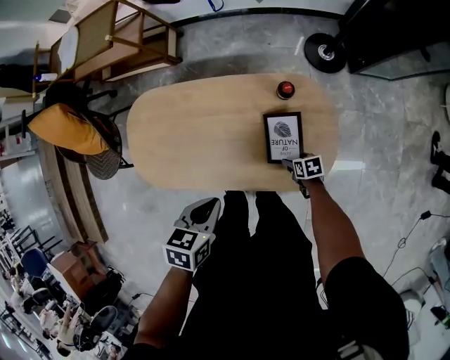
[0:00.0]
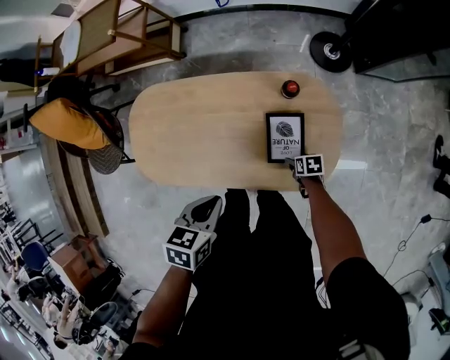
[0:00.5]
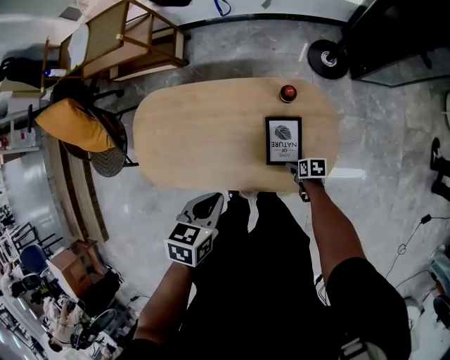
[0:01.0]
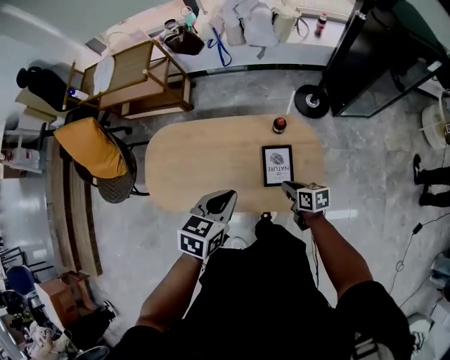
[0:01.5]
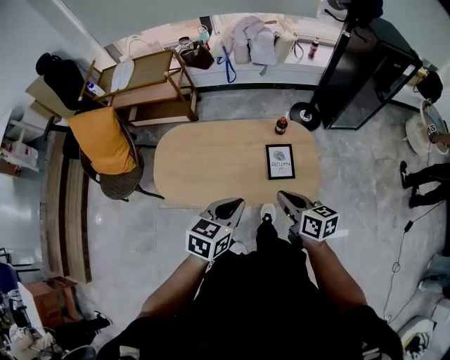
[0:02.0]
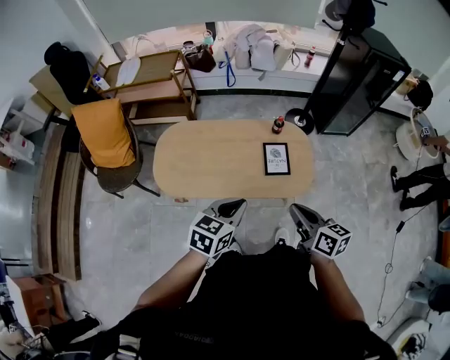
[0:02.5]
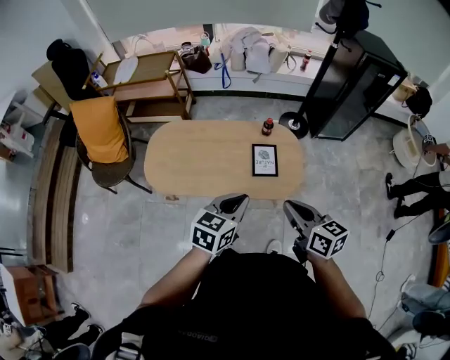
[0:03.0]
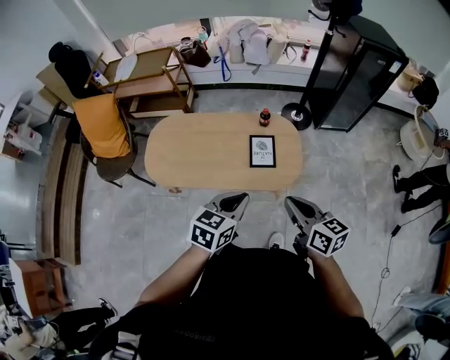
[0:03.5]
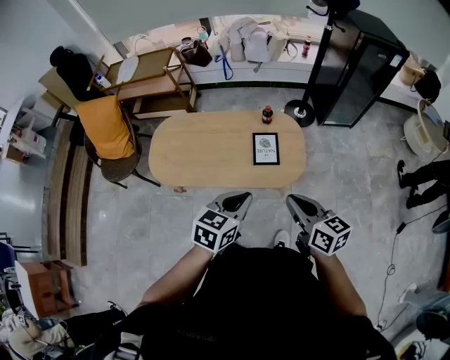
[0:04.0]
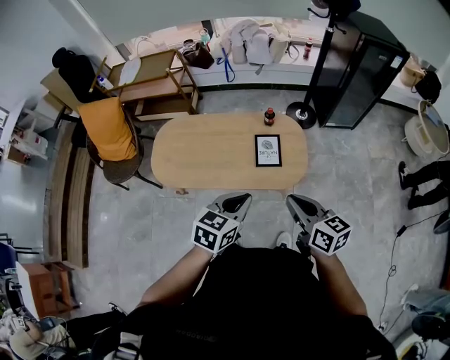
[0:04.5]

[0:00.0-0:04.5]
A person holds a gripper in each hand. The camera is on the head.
0:00.0 to 0:02.0: The left gripper moves upward and backward, approximately 20 cm, and turns by about 30 degrees. The right gripper travels upward by approximately 40 cm, tips its fingers upward by approximately 40 degrees, and closes.
0:02.0 to 0:04.5: The left gripper moves to the right and backward, approximately 15 cm; the right gripper shifts roughly 20 cm backward, to the right and upward.

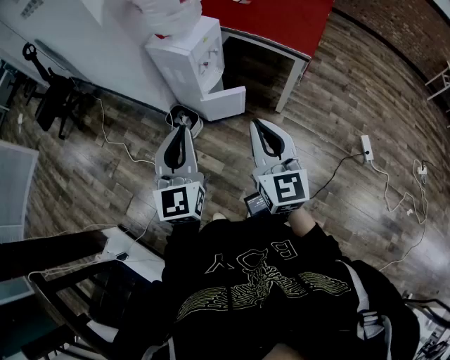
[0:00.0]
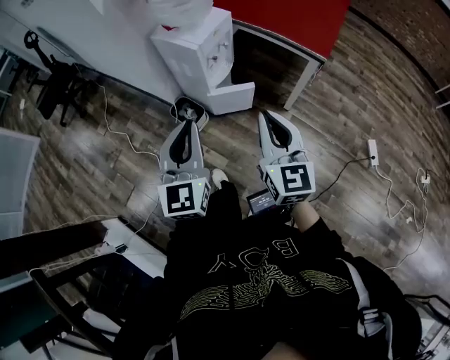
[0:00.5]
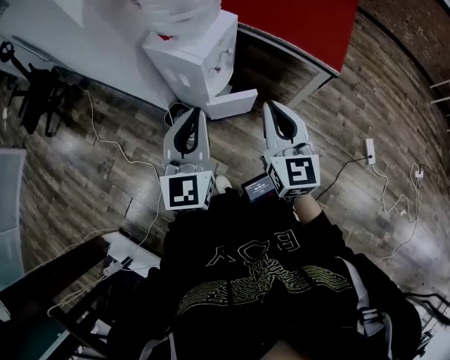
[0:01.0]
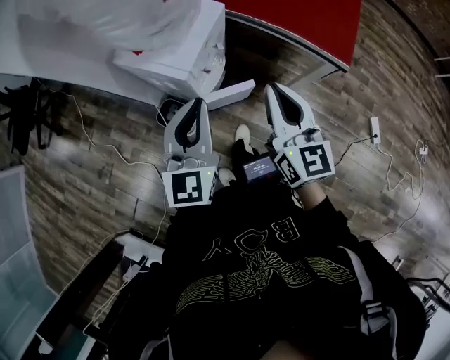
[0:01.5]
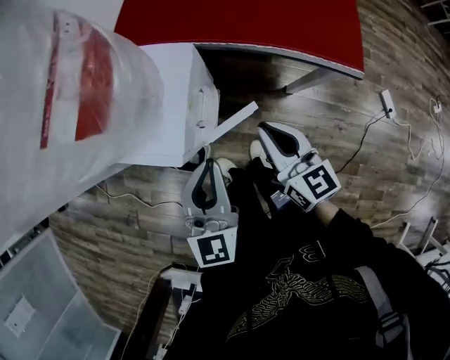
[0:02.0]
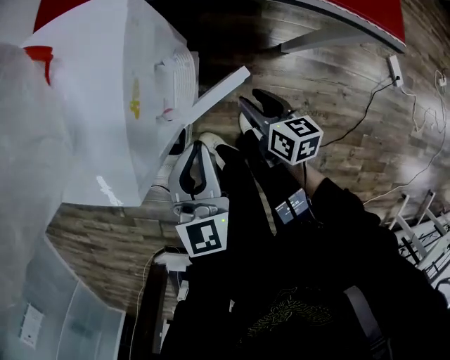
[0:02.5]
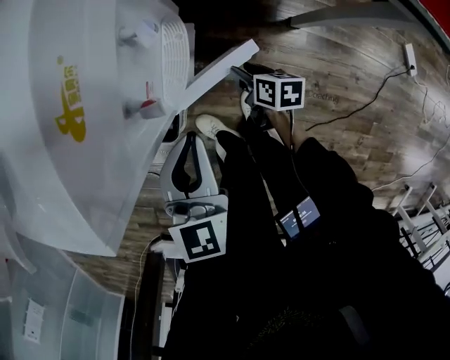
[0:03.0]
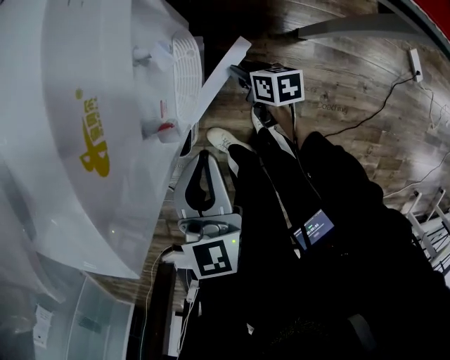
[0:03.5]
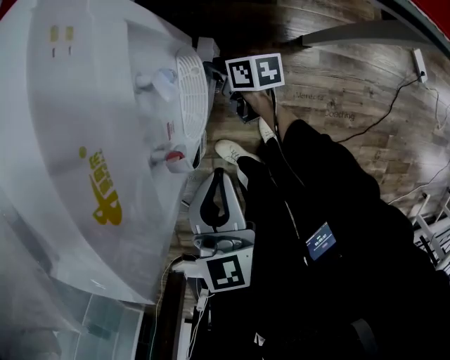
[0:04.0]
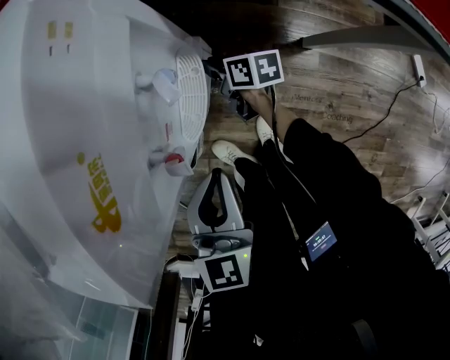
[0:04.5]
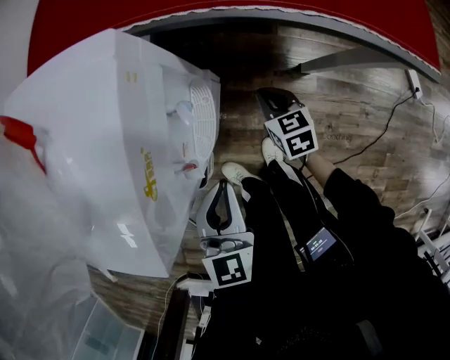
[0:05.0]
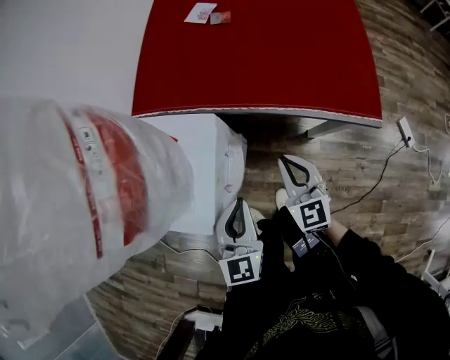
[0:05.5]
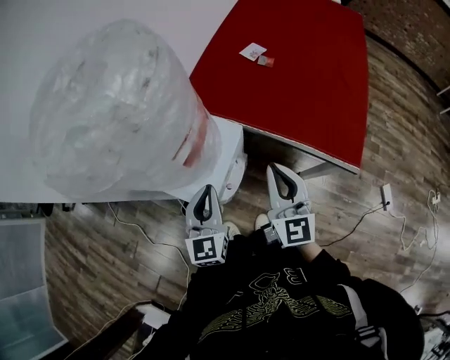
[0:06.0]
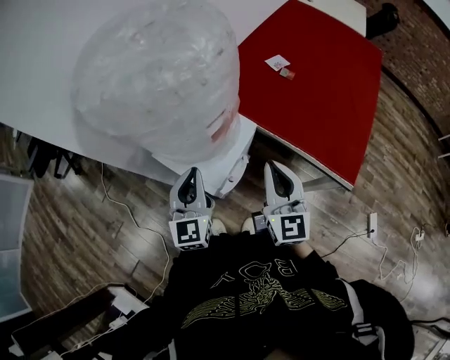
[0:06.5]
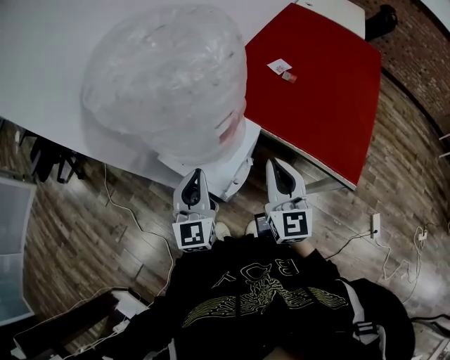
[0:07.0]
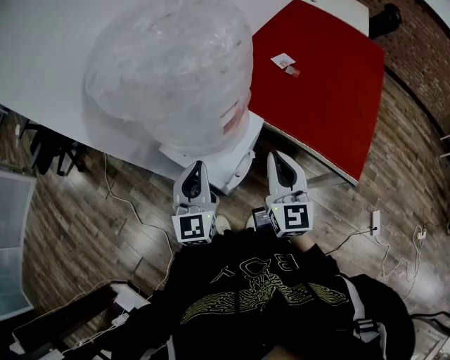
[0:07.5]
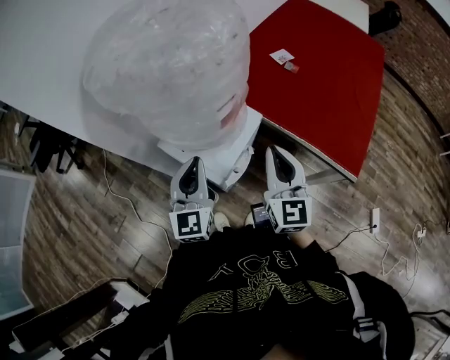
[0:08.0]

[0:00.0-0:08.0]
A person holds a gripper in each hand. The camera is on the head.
0:00.0 to 0:02.0: The two grippers travel together, forward, approximately 40 cm. The right gripper is displaced downward by about 20 cm, and turns by approximately 30 degrees. Meanwhile the left gripper turns by some 20 degrees.
0:02.0 to 0:04.0: The right gripper shifts approximately 50 cm downward, swivels roughly 50 degrees, and opens up, while the left gripper shifts about 25 cm downward.
0:04.0 to 0:06.0: The right gripper goes approximately 60 cm upward, points its fingers approximately 40 degrees further upward, and closes. Meanwhile the left gripper moves upward, approximately 30 cm, and swivels roughly 30 degrees.
0:06.0 to 0:08.0: The left gripper goes some 10 cm to the left and upward. The right gripper heads to the left, covering some 5 cm.

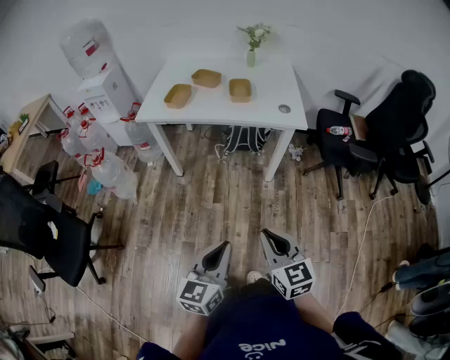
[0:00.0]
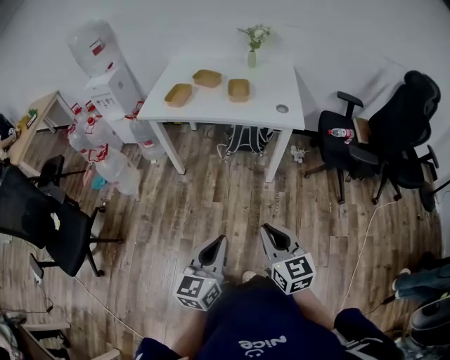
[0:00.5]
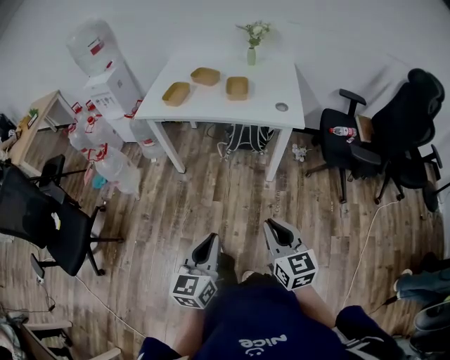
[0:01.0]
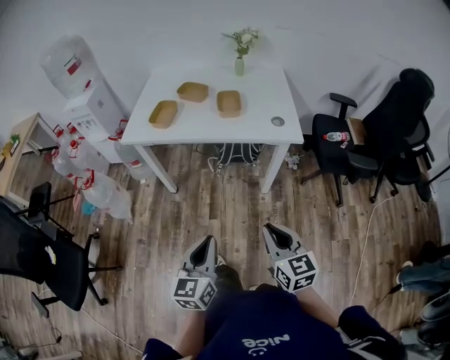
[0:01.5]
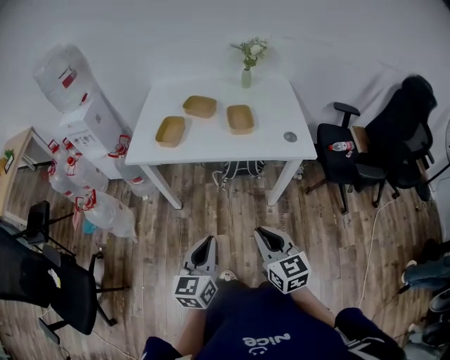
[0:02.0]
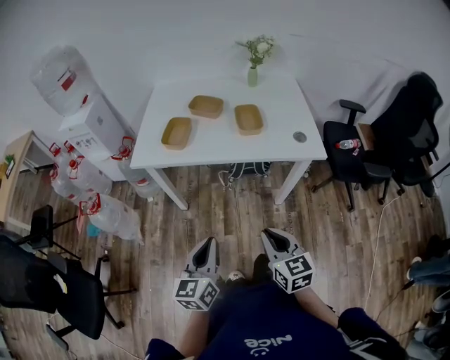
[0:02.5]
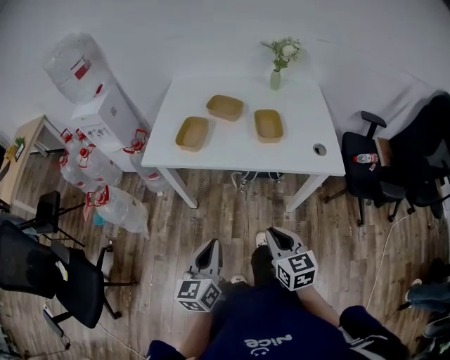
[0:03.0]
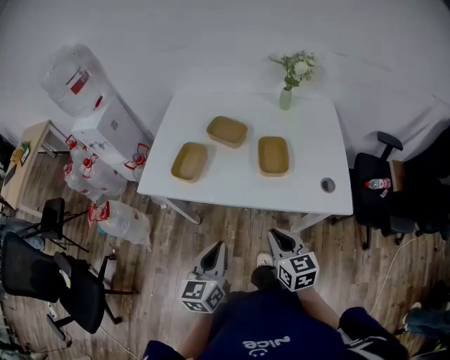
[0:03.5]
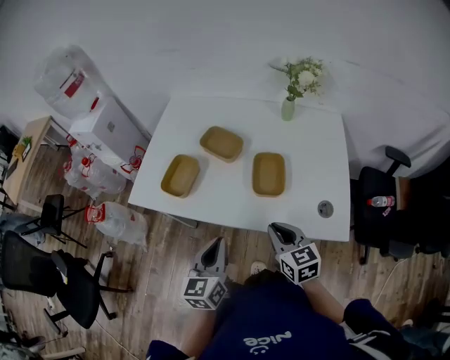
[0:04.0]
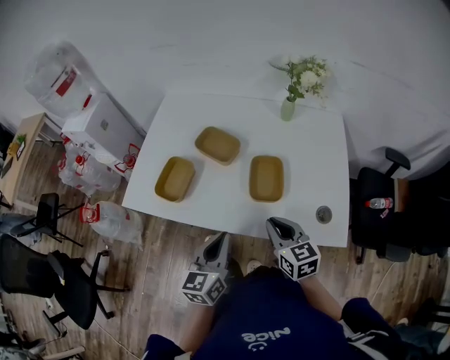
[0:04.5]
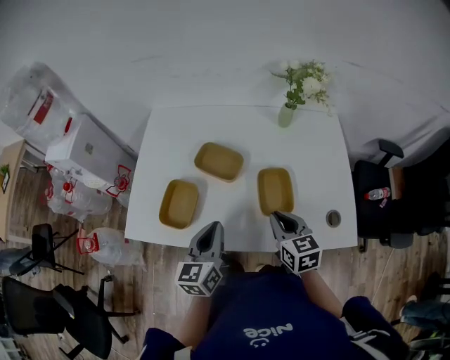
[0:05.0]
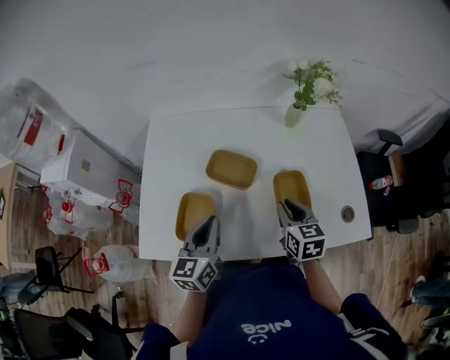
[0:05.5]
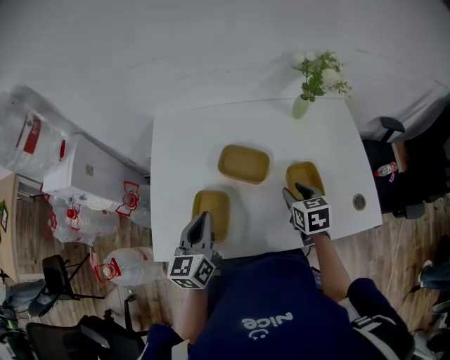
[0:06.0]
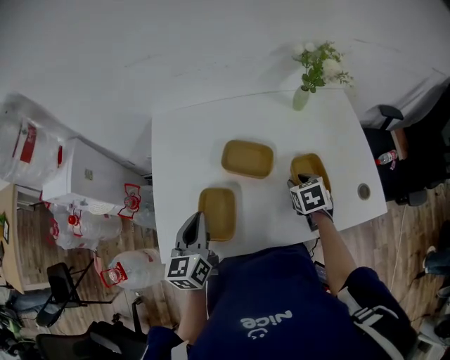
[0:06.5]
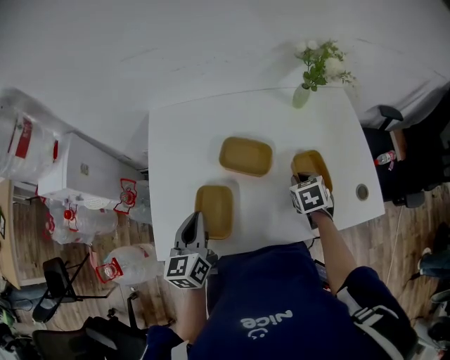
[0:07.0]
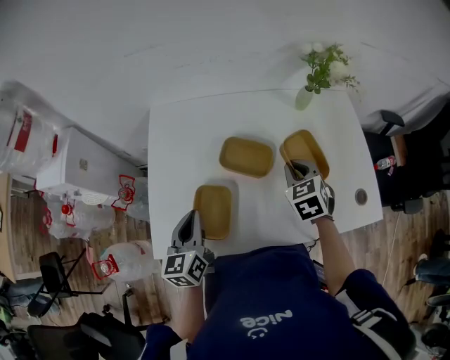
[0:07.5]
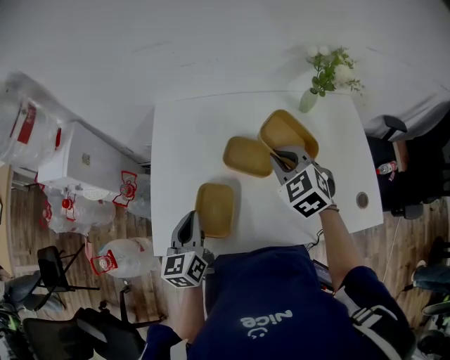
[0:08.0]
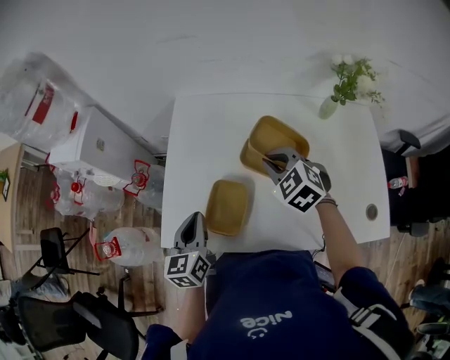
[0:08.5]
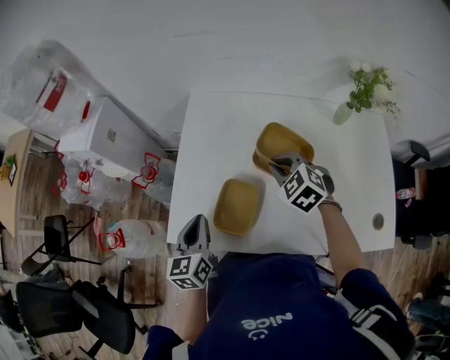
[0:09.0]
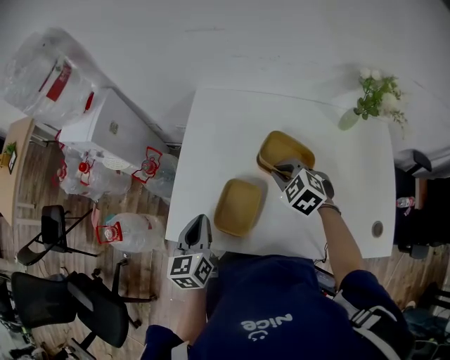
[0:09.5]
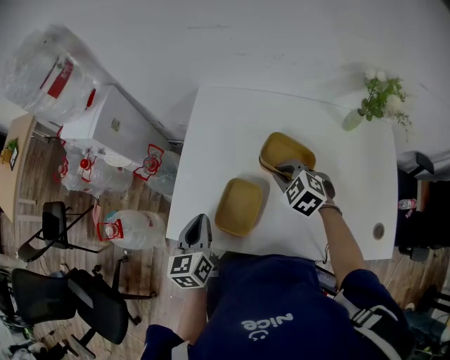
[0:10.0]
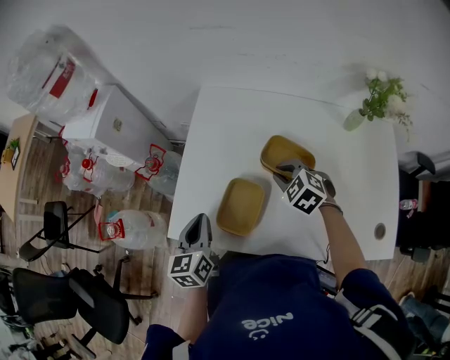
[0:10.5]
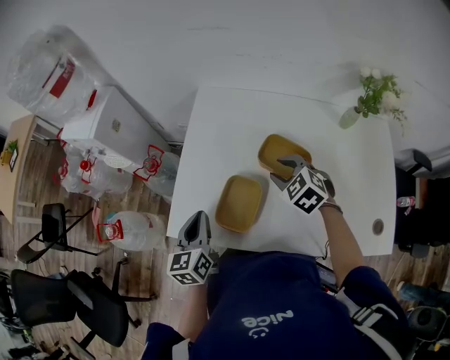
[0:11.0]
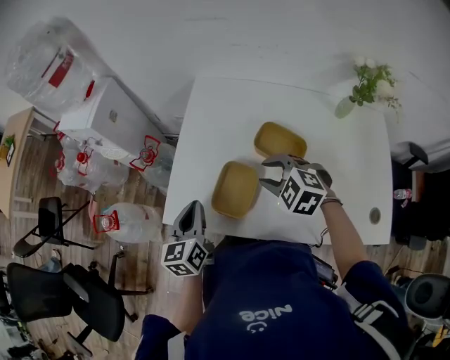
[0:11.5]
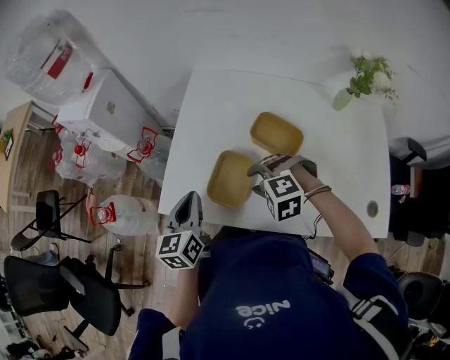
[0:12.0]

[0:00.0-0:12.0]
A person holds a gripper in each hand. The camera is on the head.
0:00.0 to 0:02.0: Both grippers move forward, approximately 25 cm.
0:02.0 to 0:04.0: Both grippers travel together forward, some 35 cm.
0:04.0 to 0:06.0: The right gripper goes some 20 cm forward, swivels some 30 degrees, and opens up, while the left gripper travels forward and to the left by about 30 cm.
0:06.0 to 0:08.0: The left gripper shifts some 5 cm to the left. Meanwhile the right gripper goes some 15 cm upward, to the left and forward, rolls counterclockwise, seen from behind, by roughly 40 degrees, and closes up.
0:08.0 to 0:10.0: The right gripper is displaced downward and to the left by approximately 15 cm, and turns by some 30 degrees; the left gripper travels to the left by roughly 5 cm.
0:10.0 to 0:12.0: The right gripper shifts about 15 cm backward and to the left, twists approximately 40 degrees counterclockwise, seen from behind, and opens.

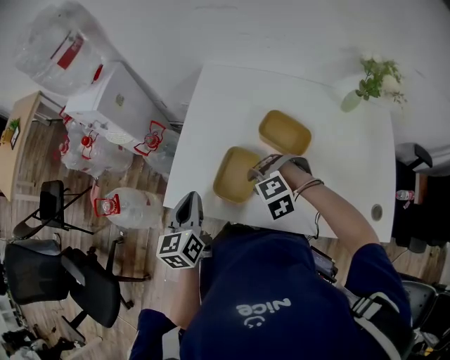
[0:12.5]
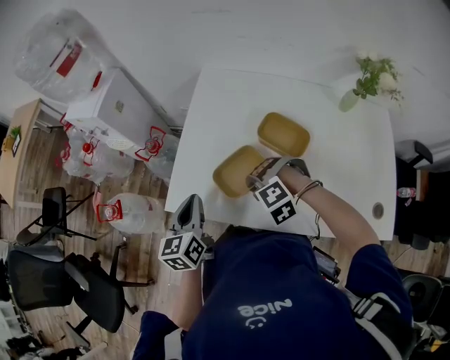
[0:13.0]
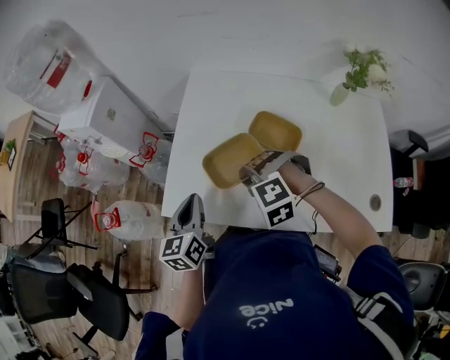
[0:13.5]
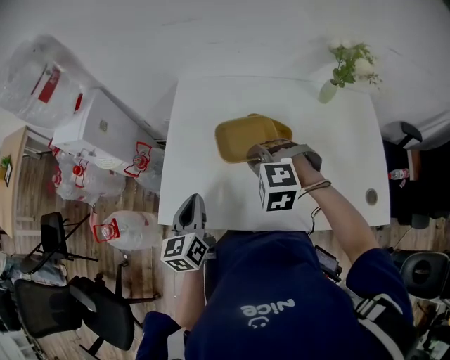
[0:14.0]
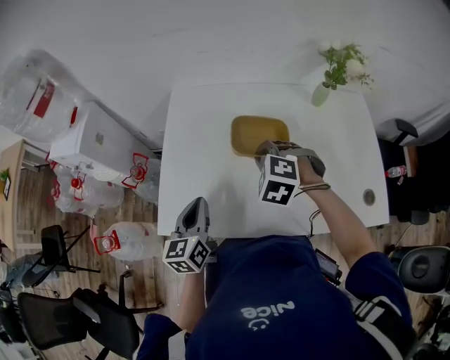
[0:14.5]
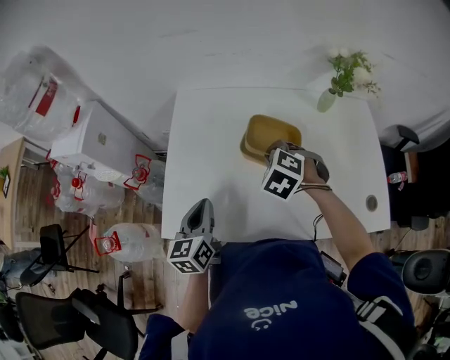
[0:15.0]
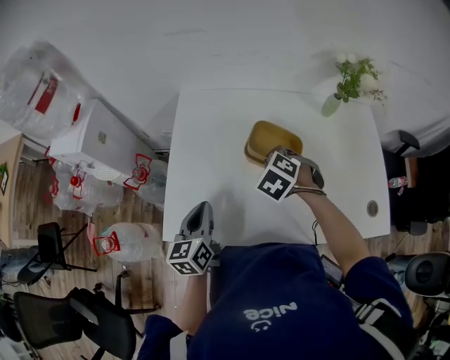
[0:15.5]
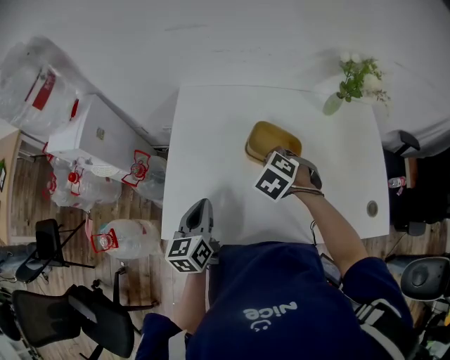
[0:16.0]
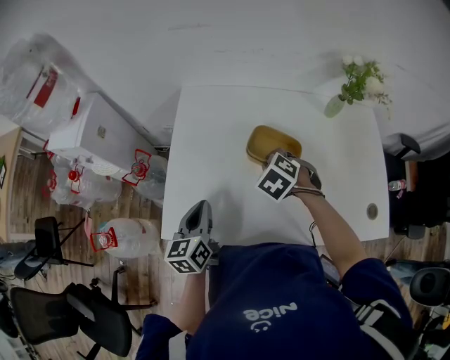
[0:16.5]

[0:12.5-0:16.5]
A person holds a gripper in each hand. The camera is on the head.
0:12.5 to 0:14.5: The right gripper ends up approximately 15 cm from where it was, rolls clockwise, seen from behind, by roughly 40 degrees, and closes. The left gripper ends up about 10 cm from where it was.
0:14.5 to 0:16.5: The right gripper heads downward, covering roughly 5 cm, and swivels approximately 20 degrees.
